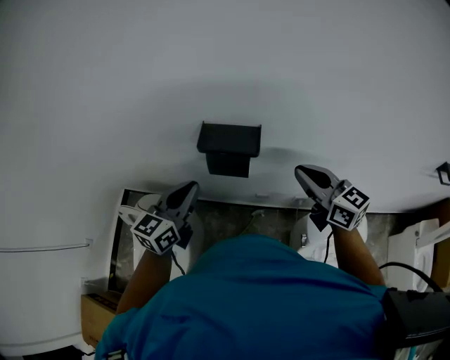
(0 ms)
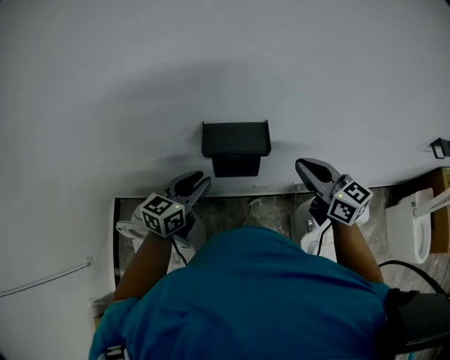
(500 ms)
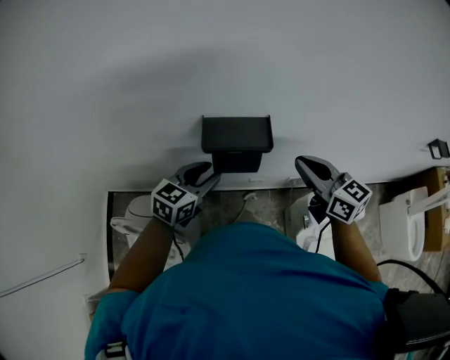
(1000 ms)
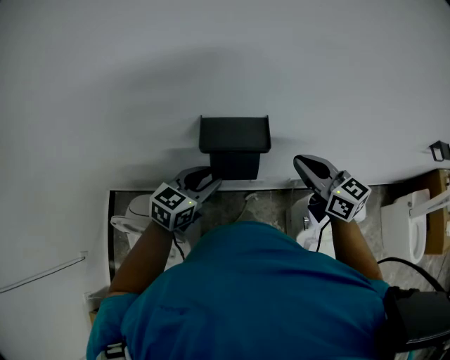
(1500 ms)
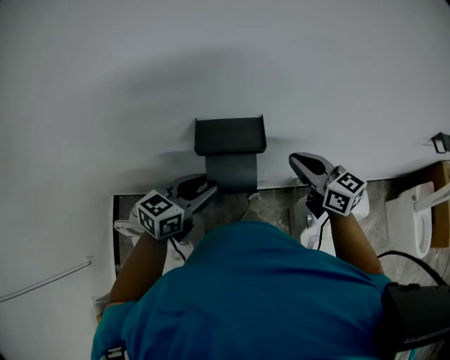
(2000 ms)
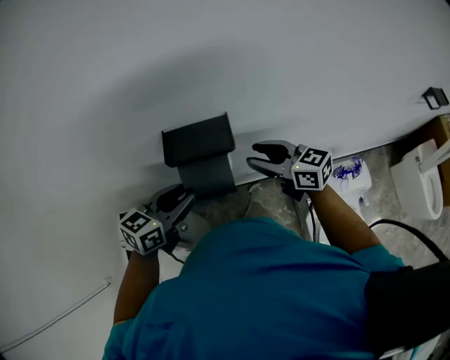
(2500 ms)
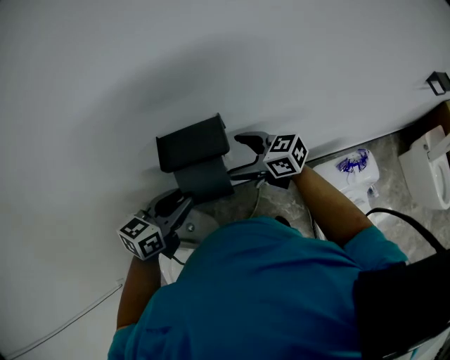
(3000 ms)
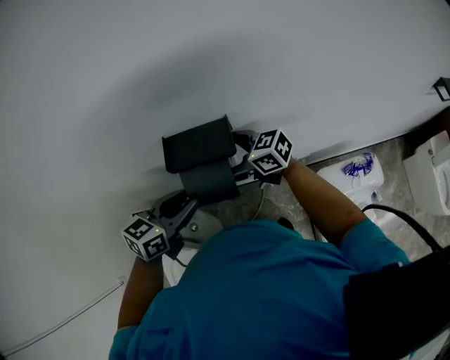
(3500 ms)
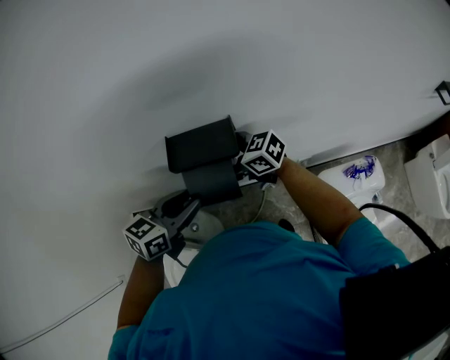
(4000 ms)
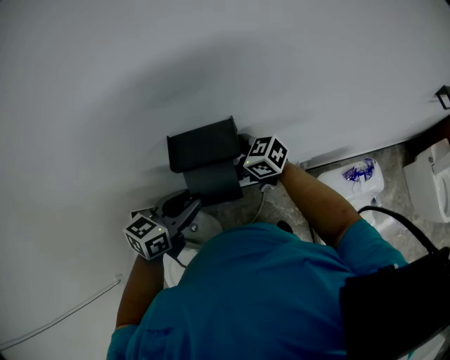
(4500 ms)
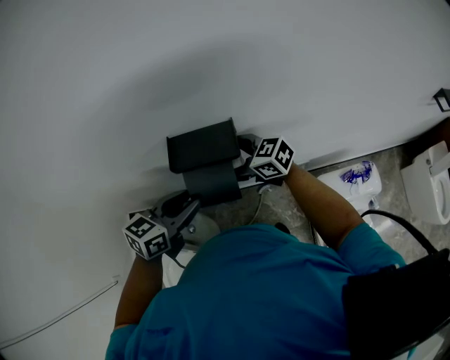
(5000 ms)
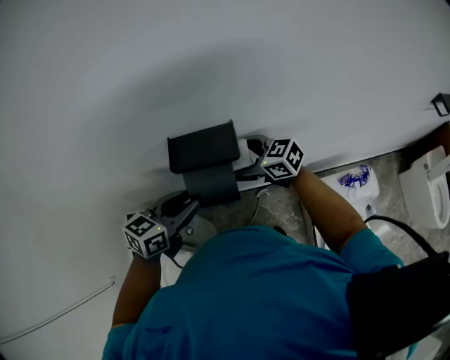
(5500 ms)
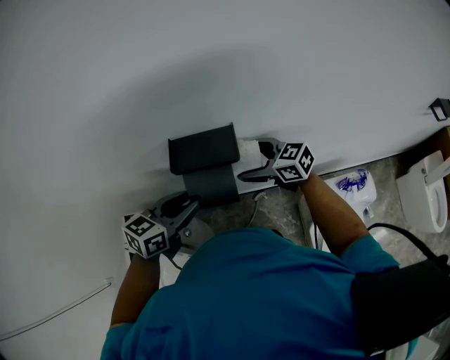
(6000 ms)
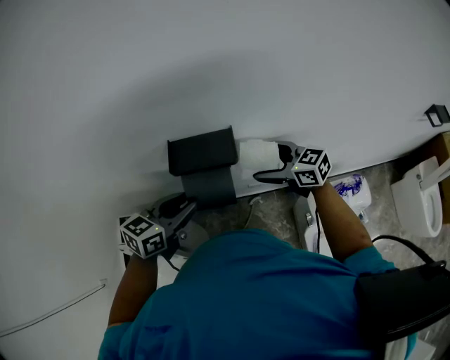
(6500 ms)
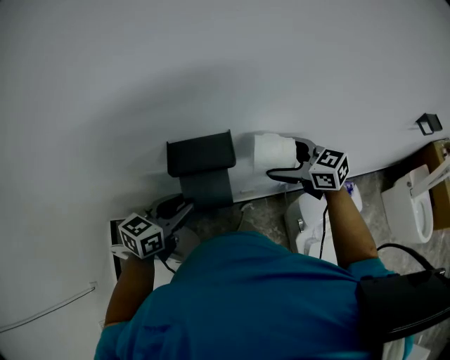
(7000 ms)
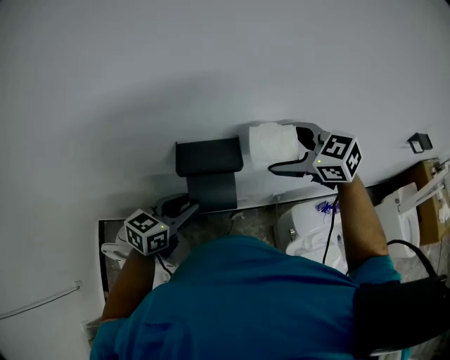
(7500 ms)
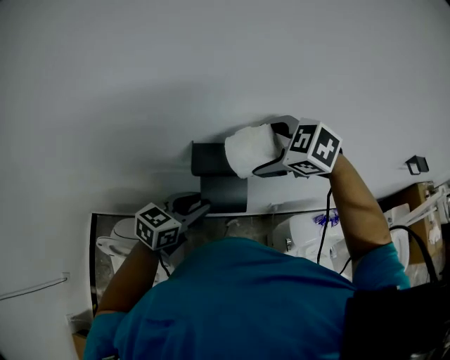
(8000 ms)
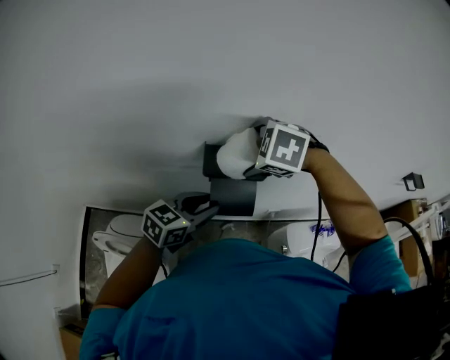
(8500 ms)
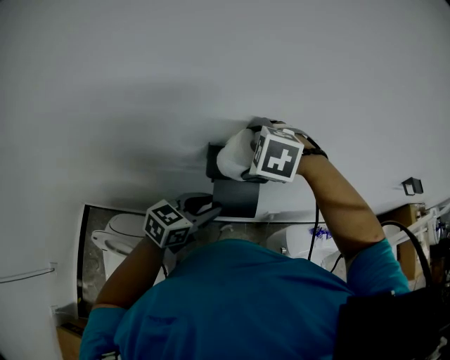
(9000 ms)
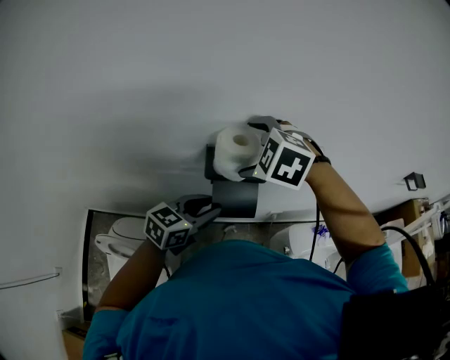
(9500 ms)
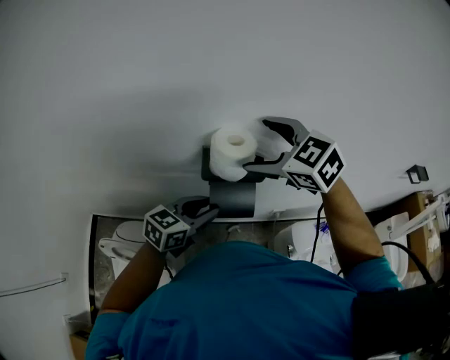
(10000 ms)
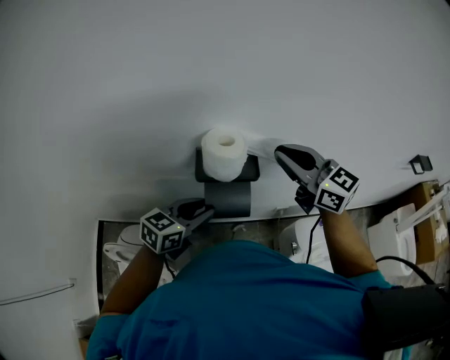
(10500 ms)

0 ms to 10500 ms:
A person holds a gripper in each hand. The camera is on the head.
0 ms to 2000 ms: The left gripper heads downward, covering approximately 5 cm, turns by approximately 30 degrees, and opens; the right gripper ends up about 5 cm from where it was.
2000 ms to 4000 ms: The right gripper moves approximately 20 cm, swivels roughly 30 degrees, and opens up.
4000 ms to 6500 ms: The right gripper shifts by some 15 cm.
6500 ms to 8500 ms: The right gripper goes some 20 cm to the left and upward, and tilts its fingers some 50 degrees downward.
8500 ms to 10500 ms: The right gripper is displaced to the right and upward by about 15 cm, tips its fingers upward by roughly 60 degrees, and closes.

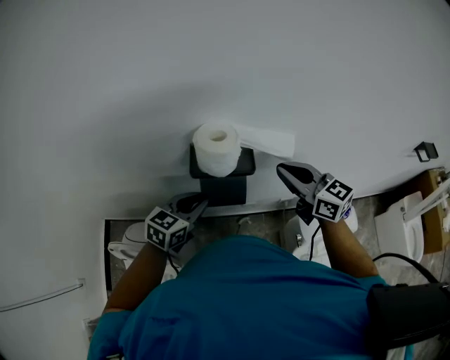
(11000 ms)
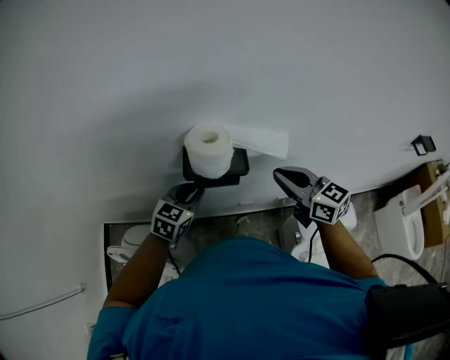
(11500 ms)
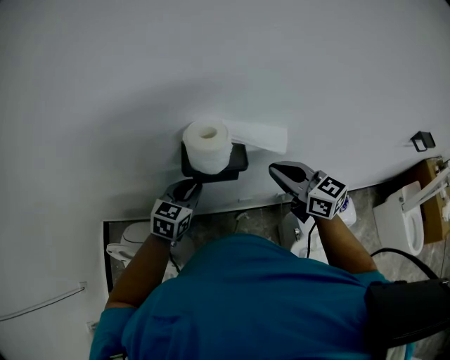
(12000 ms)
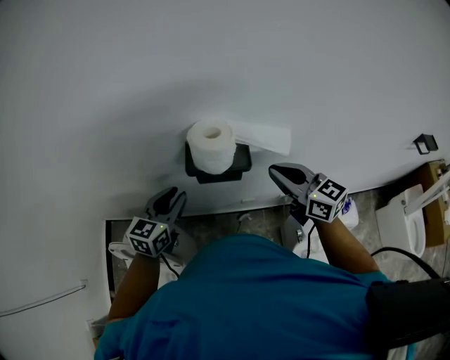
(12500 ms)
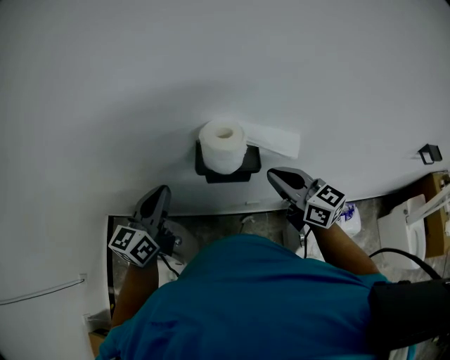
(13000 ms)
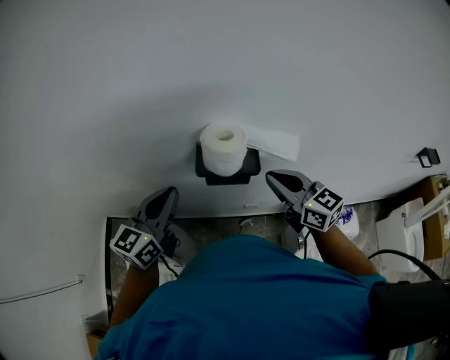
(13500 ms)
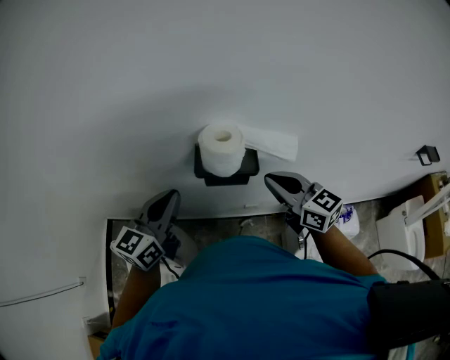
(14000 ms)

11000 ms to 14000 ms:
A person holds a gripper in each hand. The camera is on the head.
11000 ms to 12500 ms: The left gripper moves to the left, some 5 cm.
12500 ms to 14000 ms: The left gripper is displaced upward by about 10 cm, and closes.

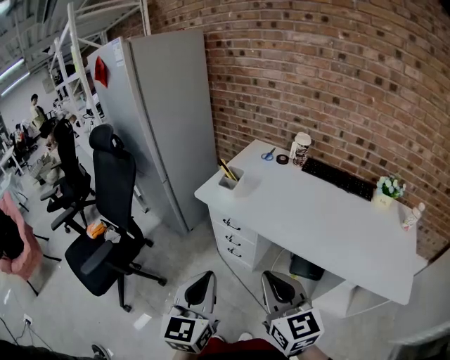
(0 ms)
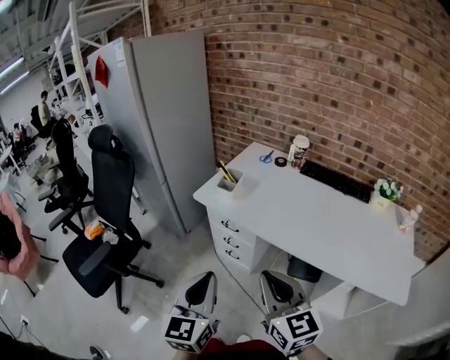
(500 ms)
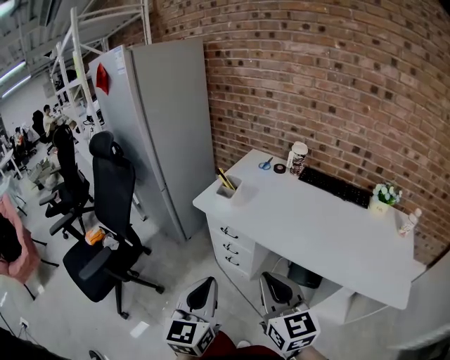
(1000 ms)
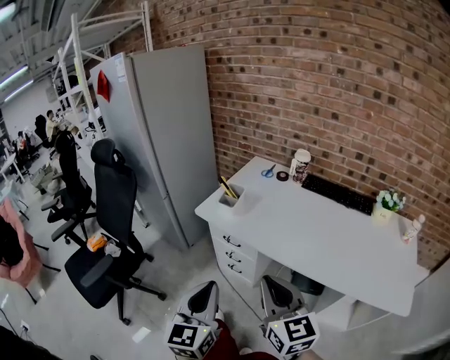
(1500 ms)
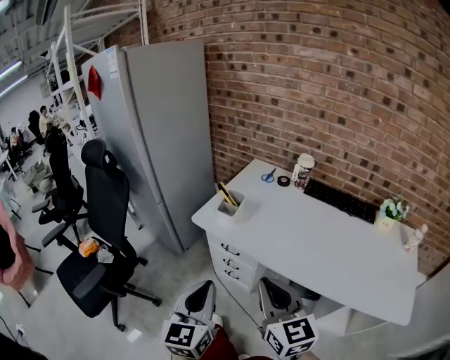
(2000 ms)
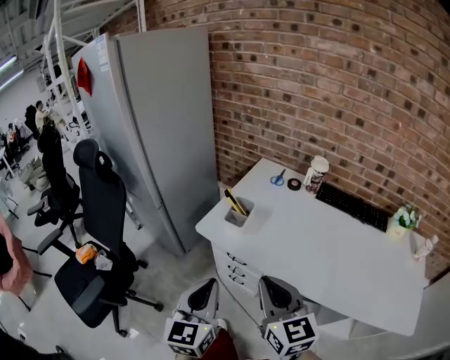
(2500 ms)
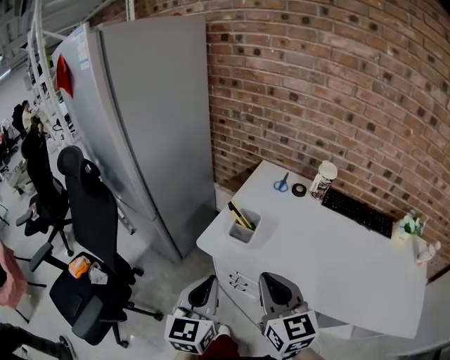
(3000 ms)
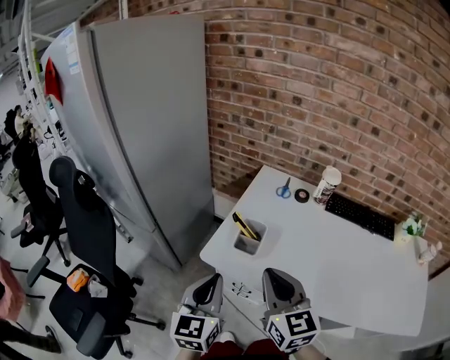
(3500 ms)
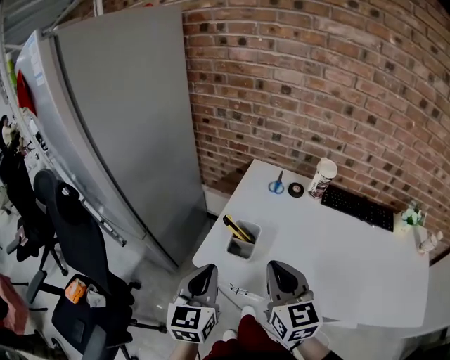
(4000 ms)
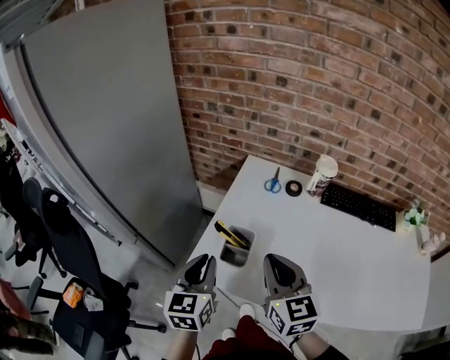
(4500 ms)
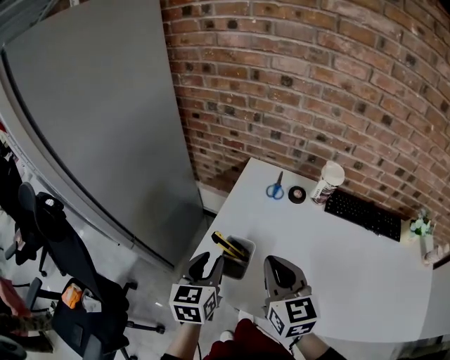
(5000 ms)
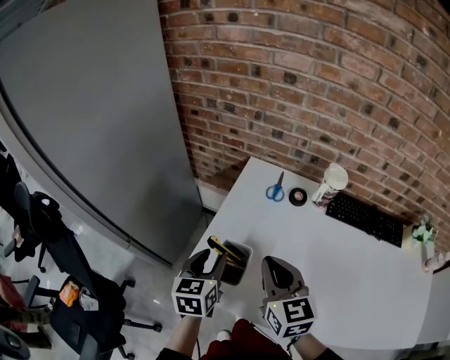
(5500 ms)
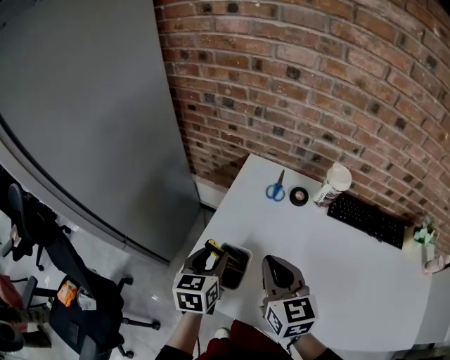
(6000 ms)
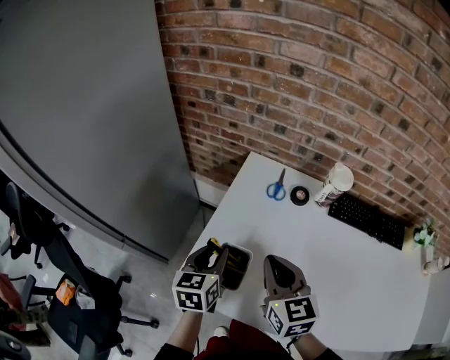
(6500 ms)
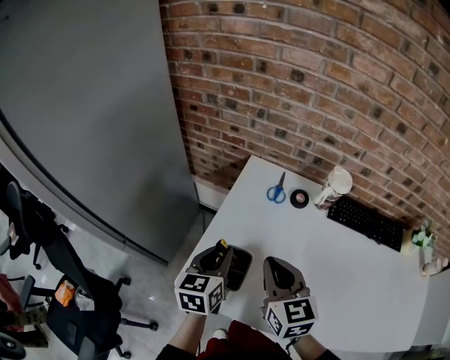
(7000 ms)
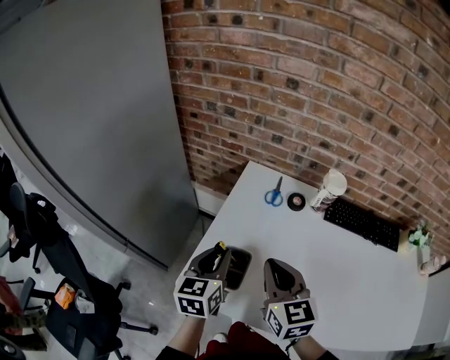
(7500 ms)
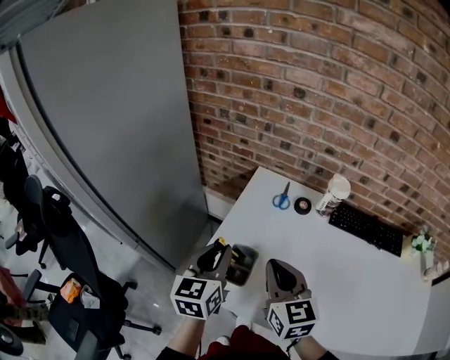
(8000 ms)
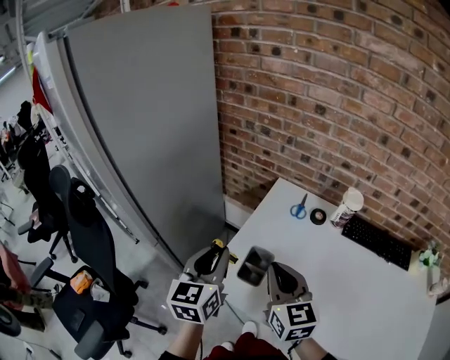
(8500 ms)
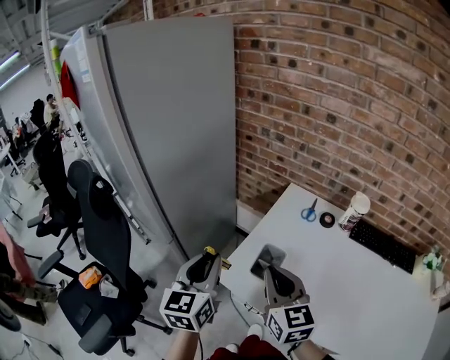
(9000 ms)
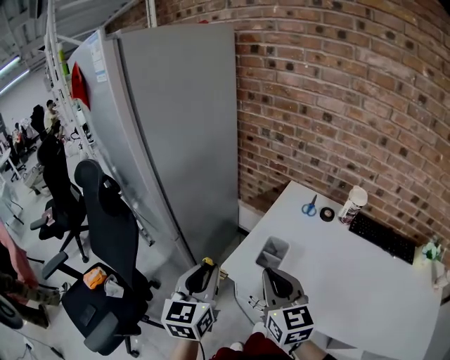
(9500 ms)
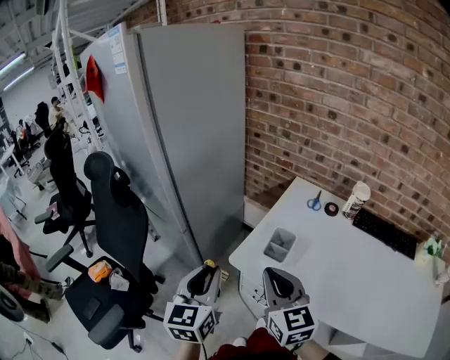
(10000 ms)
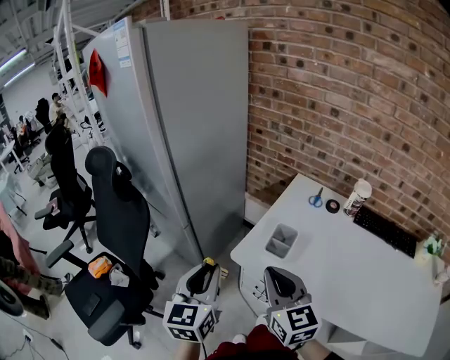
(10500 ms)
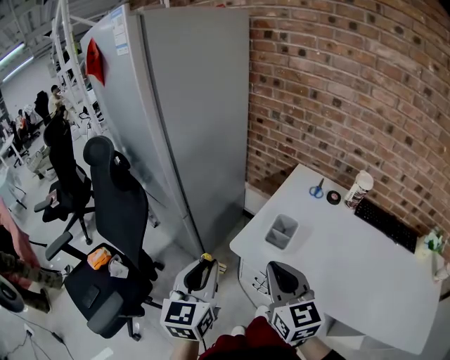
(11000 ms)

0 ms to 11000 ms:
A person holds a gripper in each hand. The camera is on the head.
0 ms to 2000 ms: Both grippers travel together forward, approximately 10 cm.
2000 ms to 3500 ms: The grippers both shift forward by roughly 25 cm.
3500 ms to 5500 ms: The right gripper shifts about 15 cm forward; the left gripper shifts about 25 cm forward and downward, and opens its fingers.
5500 ms to 7500 ms: The left gripper closes up.
7500 ms to 9000 ms: The right gripper is displaced to the left and backward by roughly 10 cm. The left gripper travels to the left, upward and backward by some 20 cm, and changes its angle by some 20 degrees.
9000 ms to 11000 ms: The grippers both shift backward and to the left by about 10 cm.

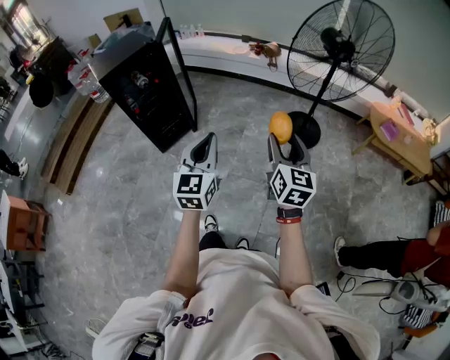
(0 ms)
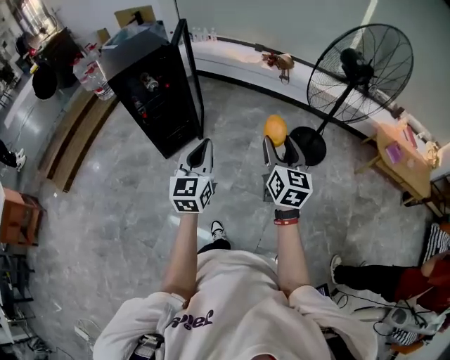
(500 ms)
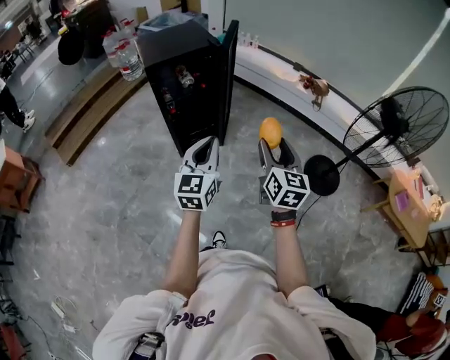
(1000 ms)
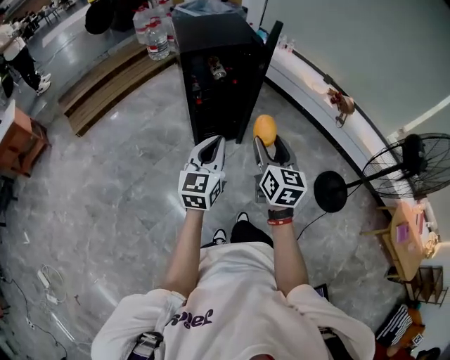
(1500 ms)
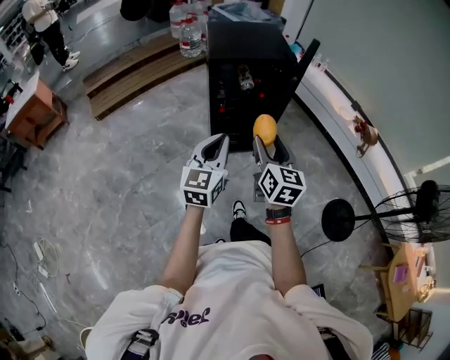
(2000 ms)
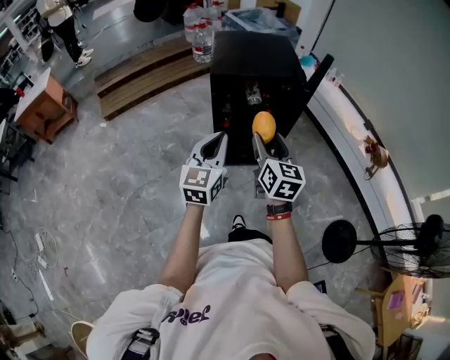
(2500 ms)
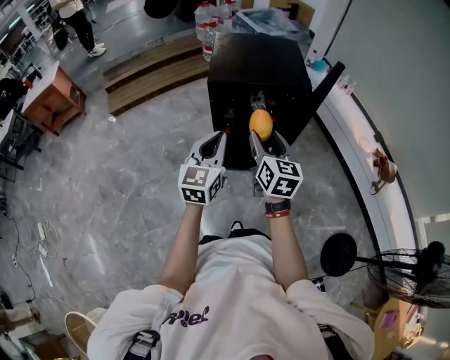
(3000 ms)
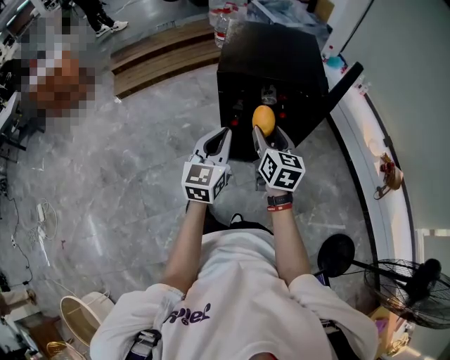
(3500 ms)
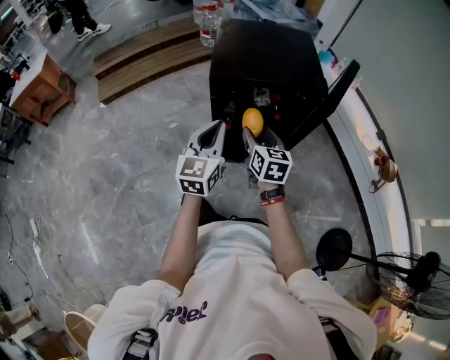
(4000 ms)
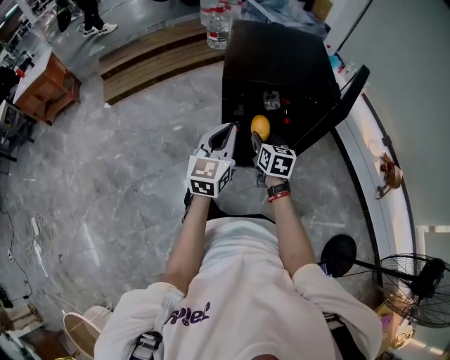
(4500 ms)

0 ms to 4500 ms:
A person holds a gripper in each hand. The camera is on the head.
0 ms to 2000 ms: The pair of grippers is taken roughly 60 cm. The right gripper swivels roughly 40 degrees. Meanwhile the left gripper changes its angle by some 30 degrees.
2000 ms to 4500 ms: The right gripper goes some 40 cm forward and downward, and rotates roughly 20 degrees. The left gripper shifts roughly 30 cm forward.
